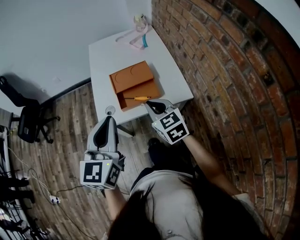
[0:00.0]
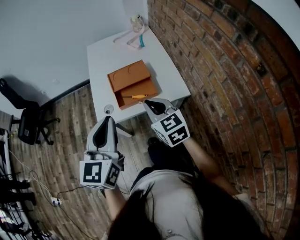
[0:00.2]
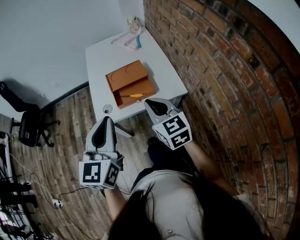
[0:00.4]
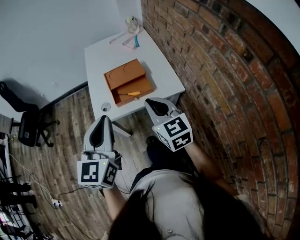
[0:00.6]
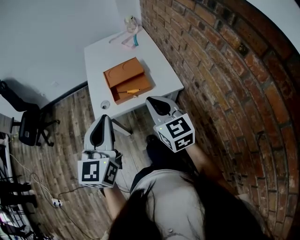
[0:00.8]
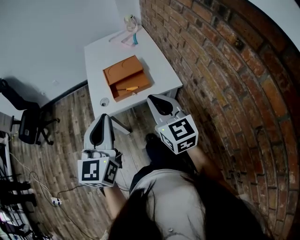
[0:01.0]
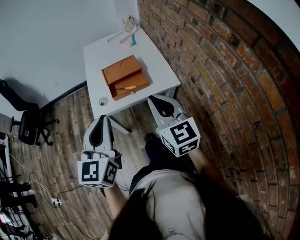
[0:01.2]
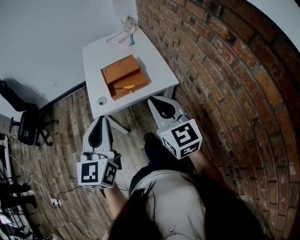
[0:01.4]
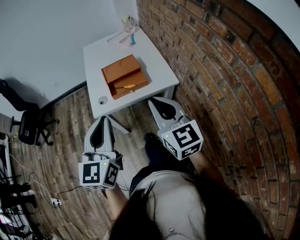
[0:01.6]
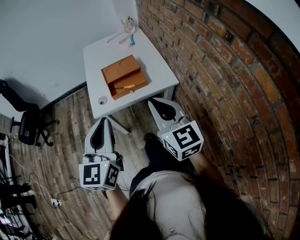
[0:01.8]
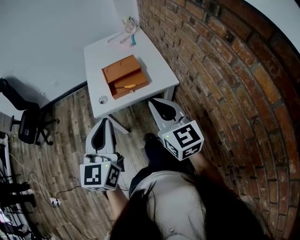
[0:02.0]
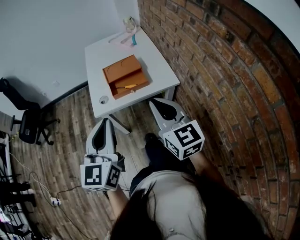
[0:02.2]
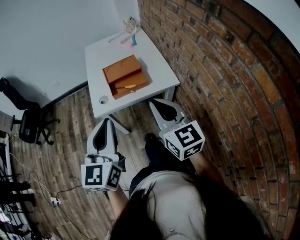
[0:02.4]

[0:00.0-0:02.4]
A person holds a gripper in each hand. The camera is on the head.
0:00.0 to 0:01.2: The left gripper is displaced backward by about 10 cm. Meanwhile the right gripper heads backward and upward, covering roughly 20 cm, and changes its angle by some 20 degrees.
0:01.2 to 0:02.4: There are only small adjustments of the grippers.

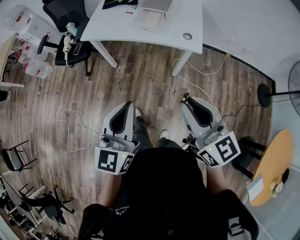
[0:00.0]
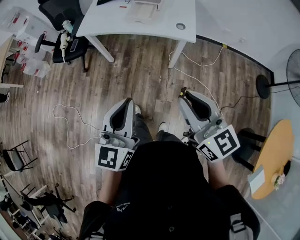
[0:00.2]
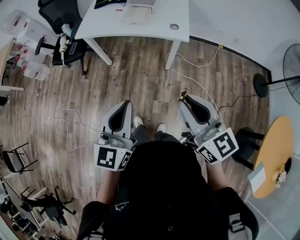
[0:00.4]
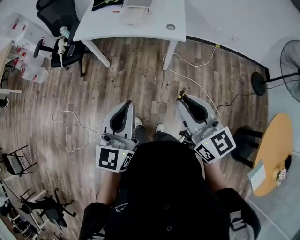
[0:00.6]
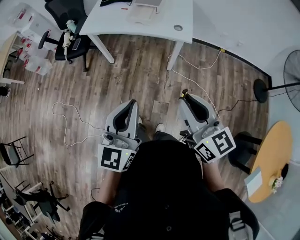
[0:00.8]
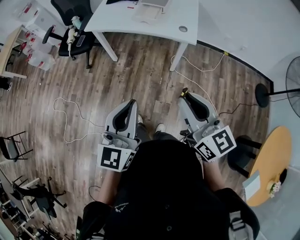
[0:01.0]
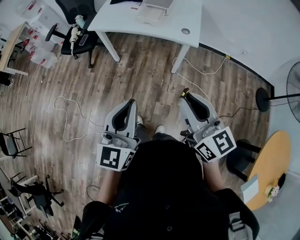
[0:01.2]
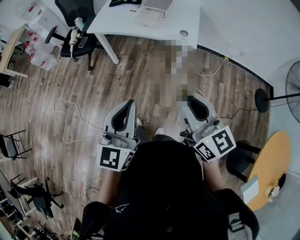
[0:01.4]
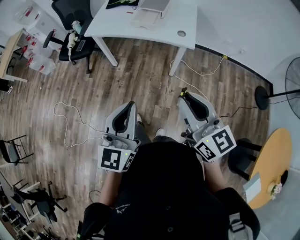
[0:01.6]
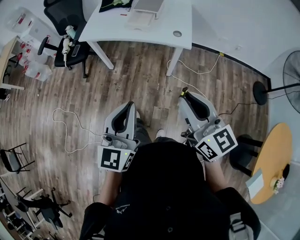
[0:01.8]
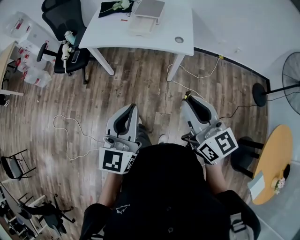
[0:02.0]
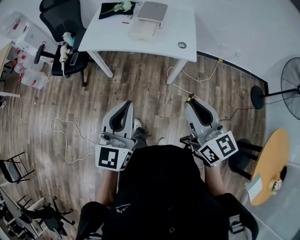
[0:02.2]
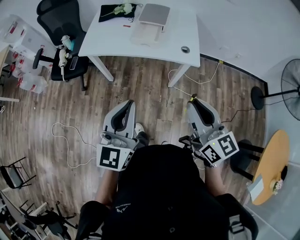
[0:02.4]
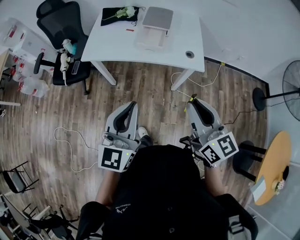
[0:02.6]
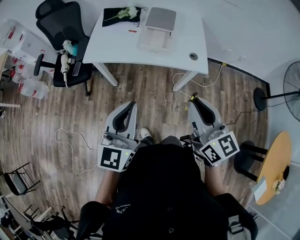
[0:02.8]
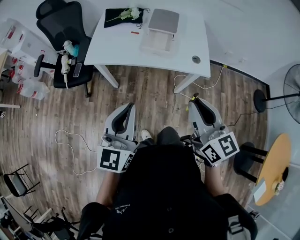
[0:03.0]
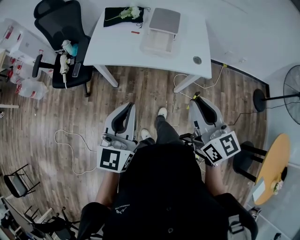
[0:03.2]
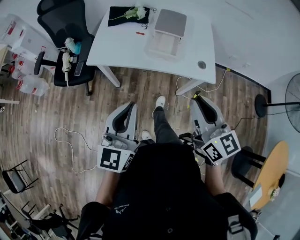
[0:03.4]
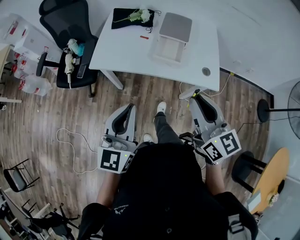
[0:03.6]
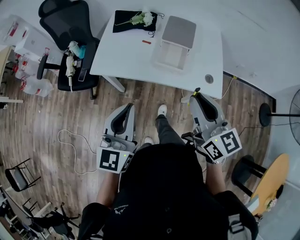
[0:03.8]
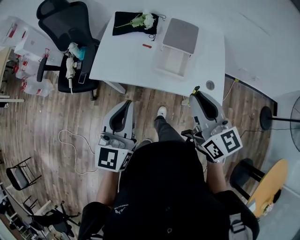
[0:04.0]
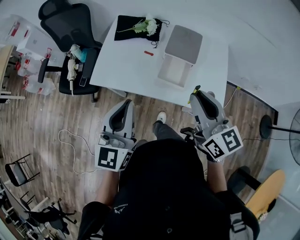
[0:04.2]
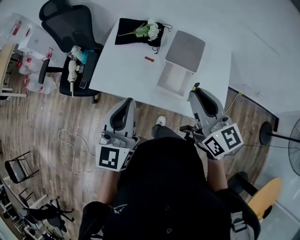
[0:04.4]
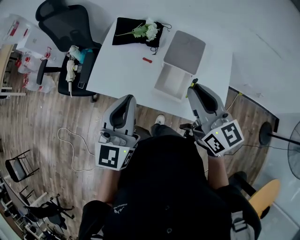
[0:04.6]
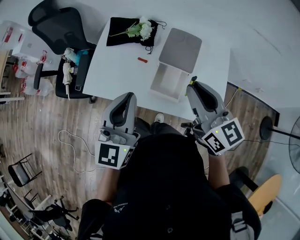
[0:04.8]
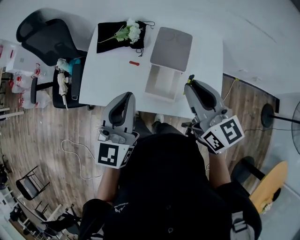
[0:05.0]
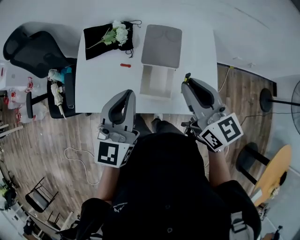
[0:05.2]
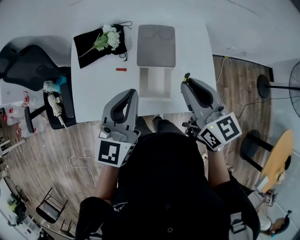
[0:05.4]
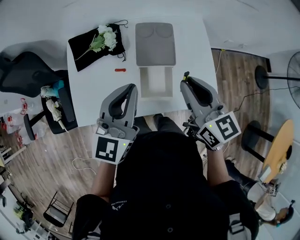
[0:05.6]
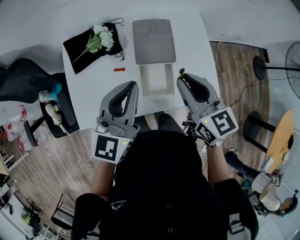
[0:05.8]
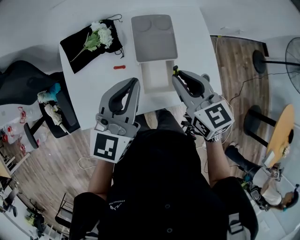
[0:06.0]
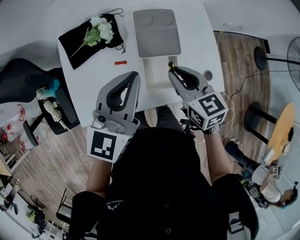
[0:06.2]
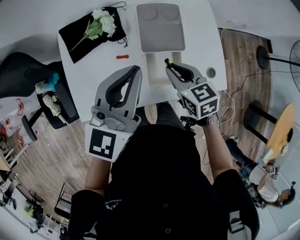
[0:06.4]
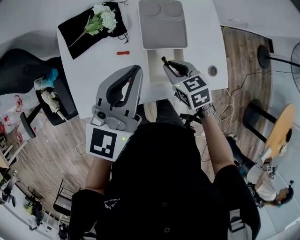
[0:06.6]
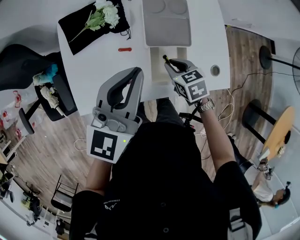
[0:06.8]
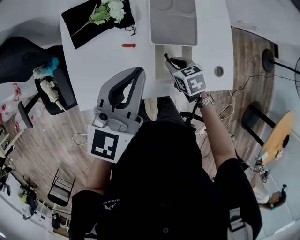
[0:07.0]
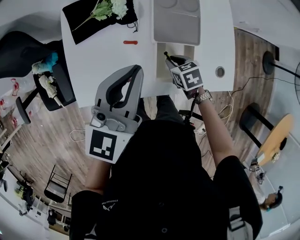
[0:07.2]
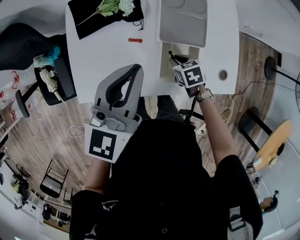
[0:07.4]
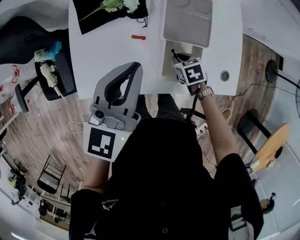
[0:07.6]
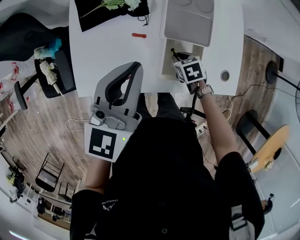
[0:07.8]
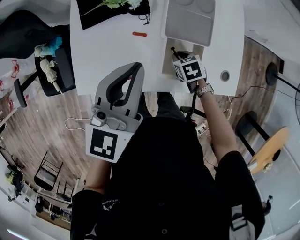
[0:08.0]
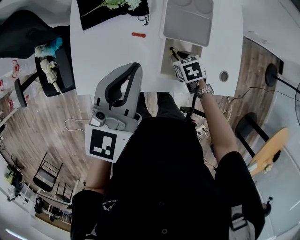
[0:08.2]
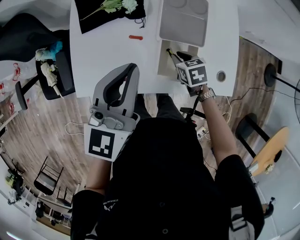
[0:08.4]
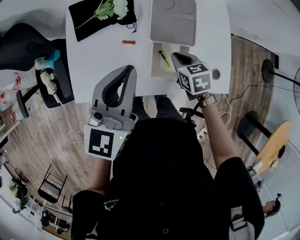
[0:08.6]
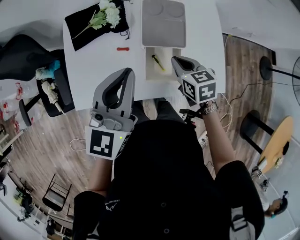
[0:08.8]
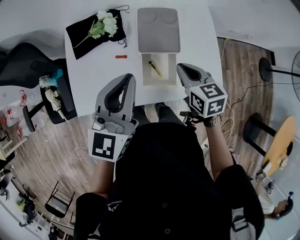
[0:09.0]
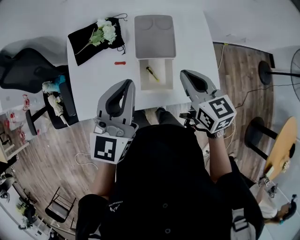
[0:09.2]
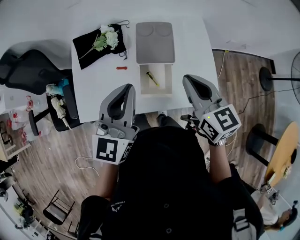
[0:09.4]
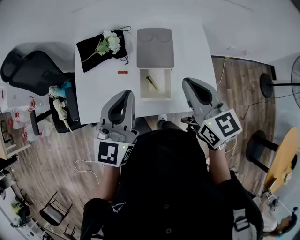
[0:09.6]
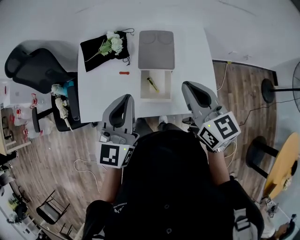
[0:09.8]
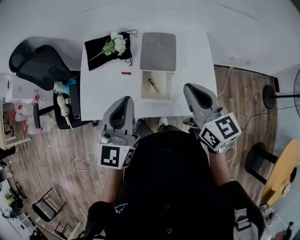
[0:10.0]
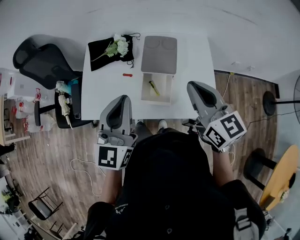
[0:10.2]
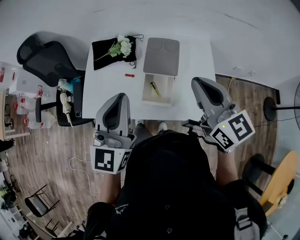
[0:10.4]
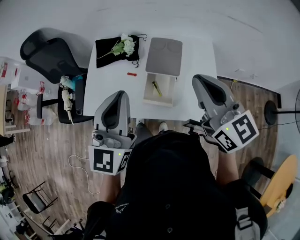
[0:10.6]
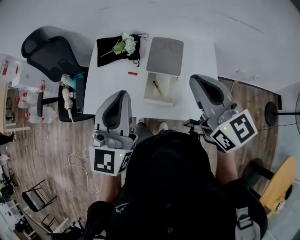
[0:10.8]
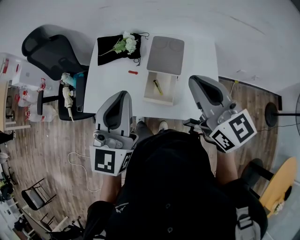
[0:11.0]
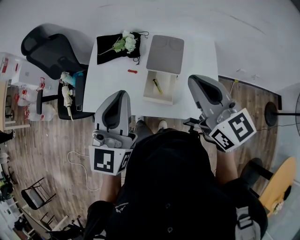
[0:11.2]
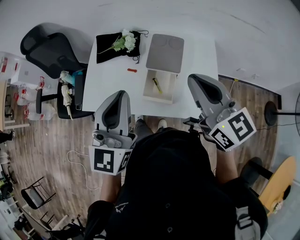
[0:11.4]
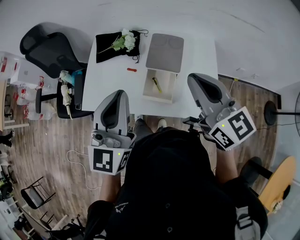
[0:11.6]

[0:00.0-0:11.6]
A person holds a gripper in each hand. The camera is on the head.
0:00.0 to 0:01.4: The grippers both shift backward by approximately 10 cm.
0:01.4 to 0:02.8: The right gripper shifts roughly 25 cm forward, while the left gripper travels forward and to the left by about 30 cm.
0:02.8 to 0:04.4: The two grippers go about 35 cm forward.
0:04.4 to 0:05.8: The left gripper shifts by approximately 20 cm, and changes its angle by roughly 30 degrees; the right gripper shifts by some 15 cm, and changes its angle by approximately 30 degrees.
0:05.8 to 0:07.2: The right gripper is displaced downward by approximately 30 cm, and tips its fingers downward by roughly 40 degrees, while the left gripper ends up some 5 cm from where it was.
0:07.2 to 0:08.8: The right gripper moves upward, about 10 cm.
0:08.8 to 0:10.2: The right gripper heads upward, covering roughly 25 cm, and points its fingers approximately 40 degrees further upward. Meanwhile the left gripper moves backward and upward, about 10 cm.
0:10.2 to 0:11.6: The right gripper travels upward by about 5 cm.

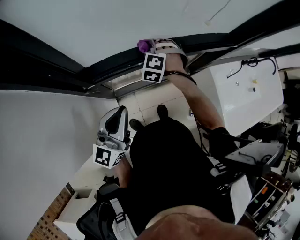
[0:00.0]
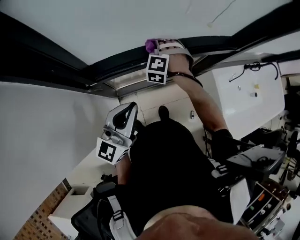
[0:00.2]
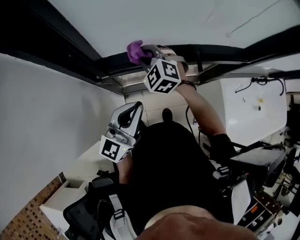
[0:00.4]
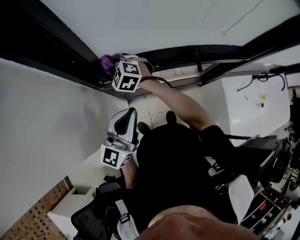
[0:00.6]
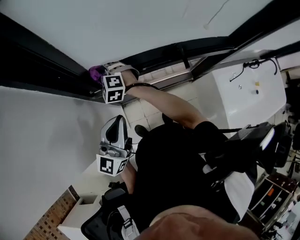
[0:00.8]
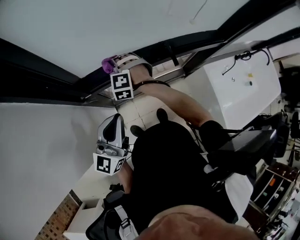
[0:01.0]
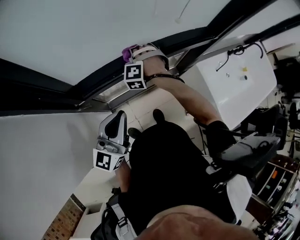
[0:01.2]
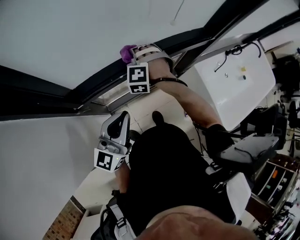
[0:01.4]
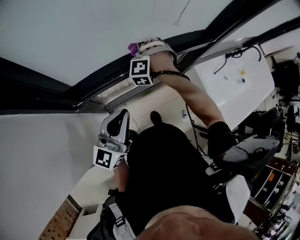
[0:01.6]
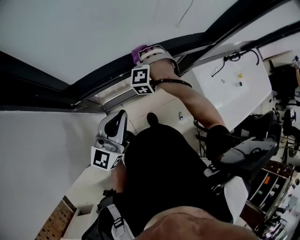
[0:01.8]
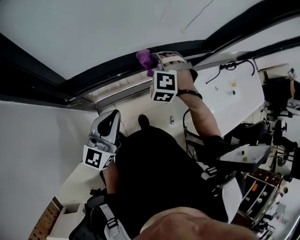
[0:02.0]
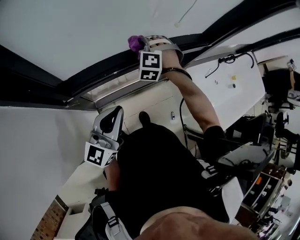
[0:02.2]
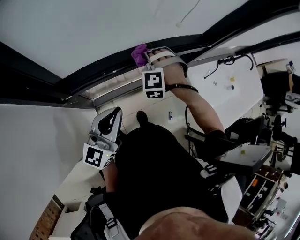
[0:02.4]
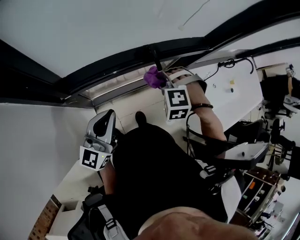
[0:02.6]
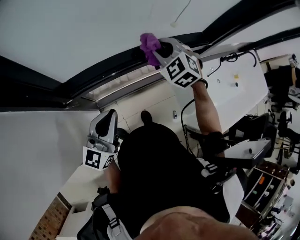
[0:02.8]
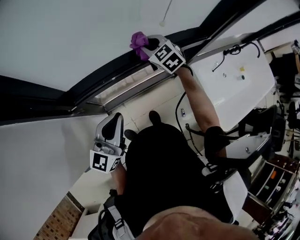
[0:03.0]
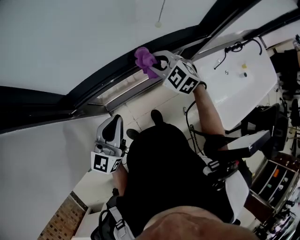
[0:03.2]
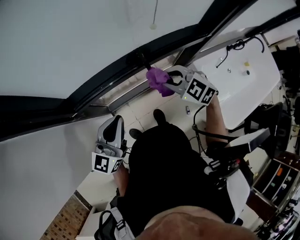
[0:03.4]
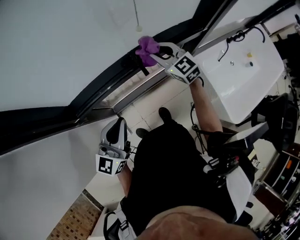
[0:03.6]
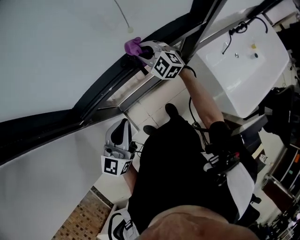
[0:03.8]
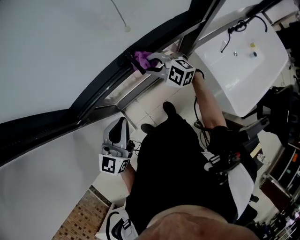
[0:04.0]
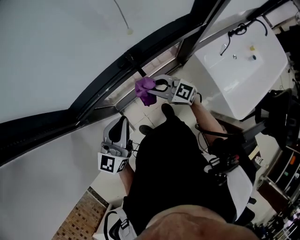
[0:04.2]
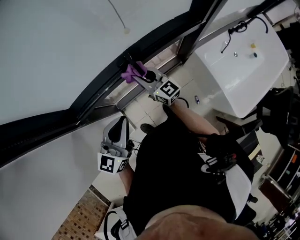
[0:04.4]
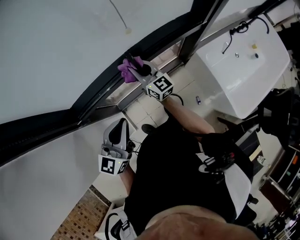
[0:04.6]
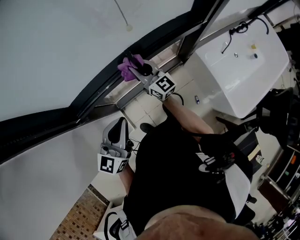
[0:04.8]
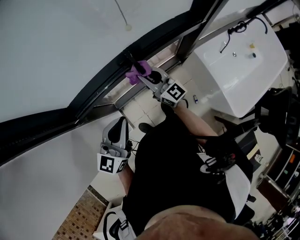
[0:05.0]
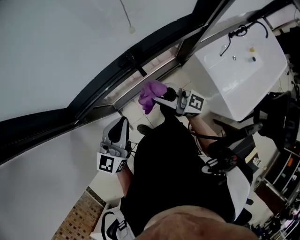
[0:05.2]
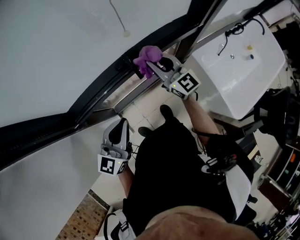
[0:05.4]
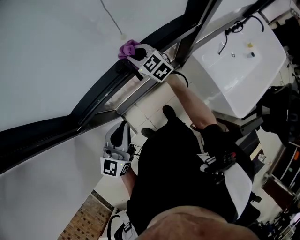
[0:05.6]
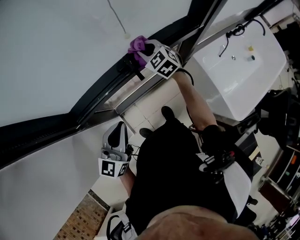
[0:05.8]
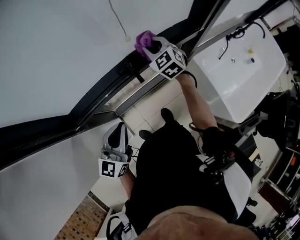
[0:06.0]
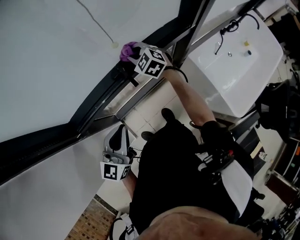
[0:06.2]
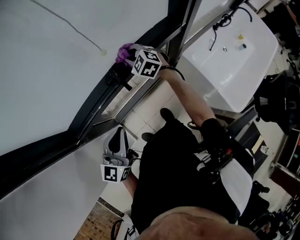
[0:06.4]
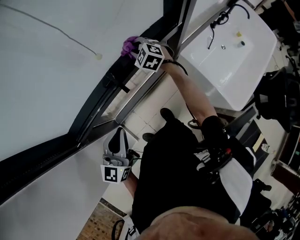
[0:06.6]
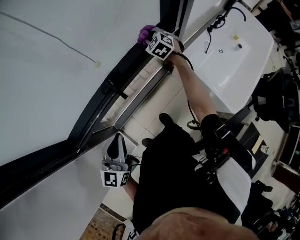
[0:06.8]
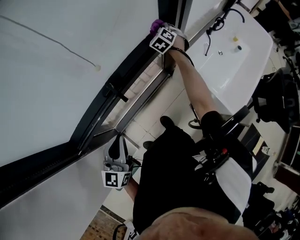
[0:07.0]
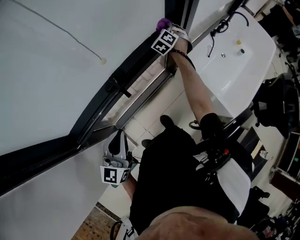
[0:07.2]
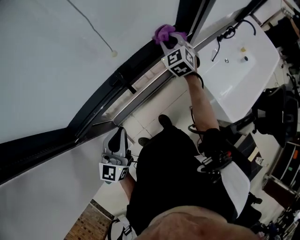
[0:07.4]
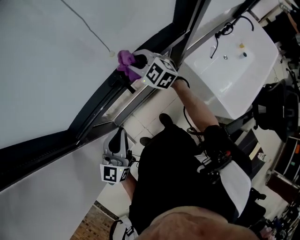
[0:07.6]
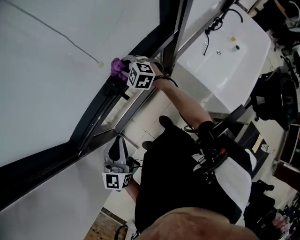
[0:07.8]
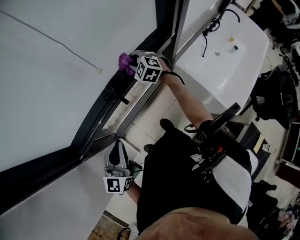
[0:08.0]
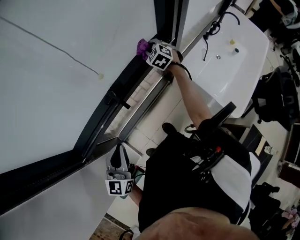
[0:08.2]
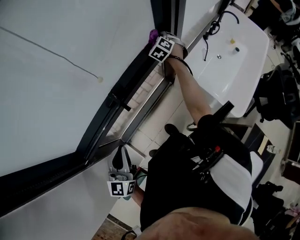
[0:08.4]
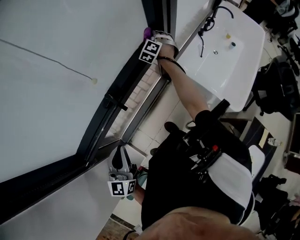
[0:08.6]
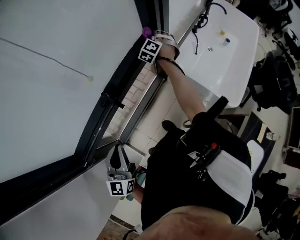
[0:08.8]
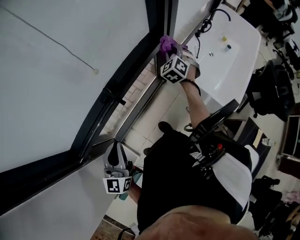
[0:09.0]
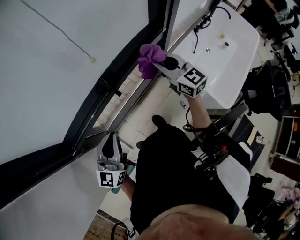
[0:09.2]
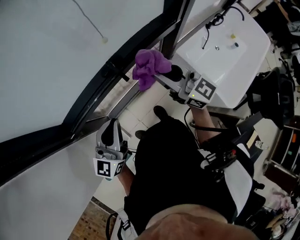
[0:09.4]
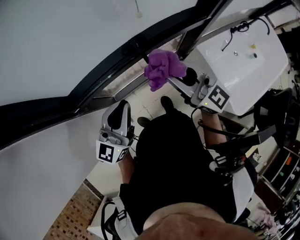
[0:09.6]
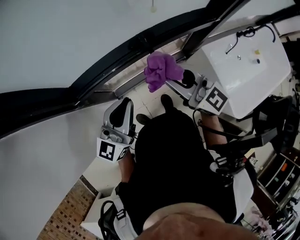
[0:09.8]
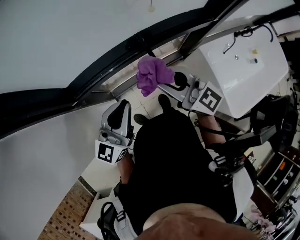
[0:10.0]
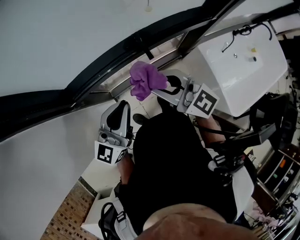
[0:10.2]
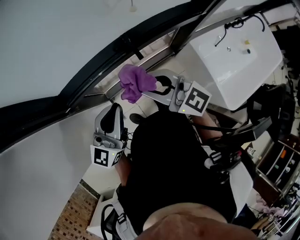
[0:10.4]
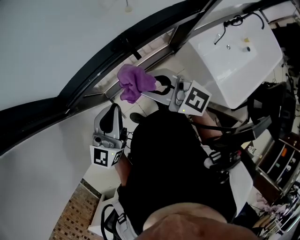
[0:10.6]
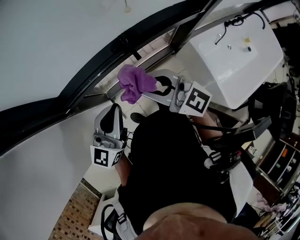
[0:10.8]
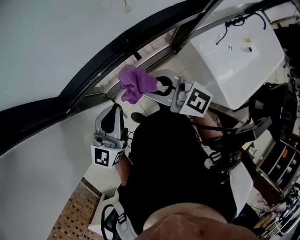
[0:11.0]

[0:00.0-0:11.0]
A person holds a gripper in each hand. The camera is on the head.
0:00.0 to 0:01.6: The right gripper goes up and down, approximately 10 cm each way, reversing 2 times. The left gripper shifts by approximately 5 cm.
0:01.6 to 0:03.2: The right gripper shifts by approximately 10 cm, and swivels about 60 degrees.
0:03.2 to 0:04.8: The right gripper goes forward and backward, about 15 cm each way, reversing 3 times, and tilts its fingers approximately 50 degrees upward.
0:04.8 to 0:06.2: The right gripper shifts about 10 cm forward, and tips its fingers downward by about 40 degrees.
0:06.2 to 0:07.8: The right gripper moves approximately 5 cm upward and comes back.
0:07.8 to 0:09.4: The right gripper ends up roughly 25 cm from where it was, and points its fingers about 50 degrees further upward.
0:09.4 to 0:11.0: The right gripper is displaced to the left by some 10 cm, and turns by about 20 degrees.
